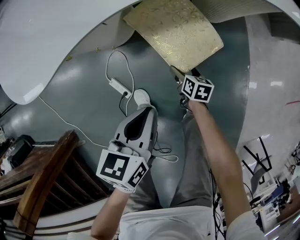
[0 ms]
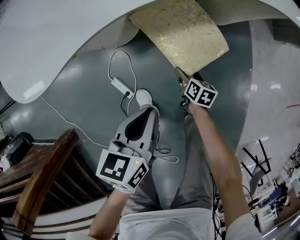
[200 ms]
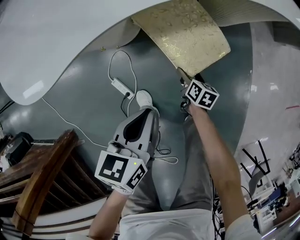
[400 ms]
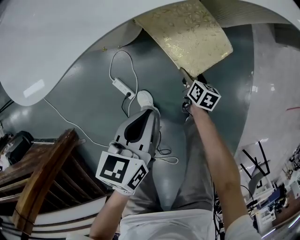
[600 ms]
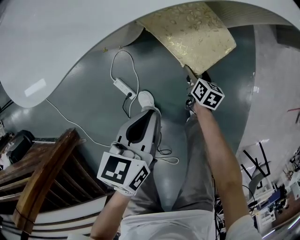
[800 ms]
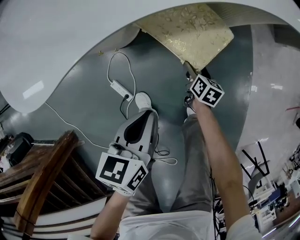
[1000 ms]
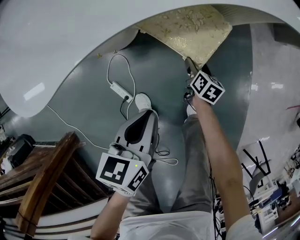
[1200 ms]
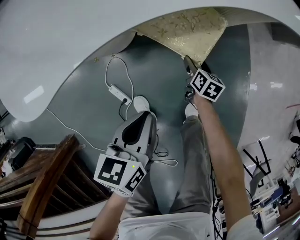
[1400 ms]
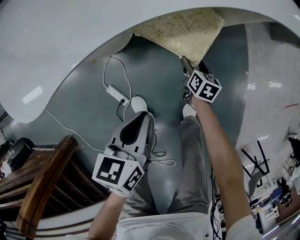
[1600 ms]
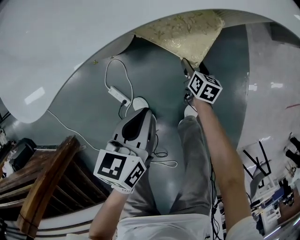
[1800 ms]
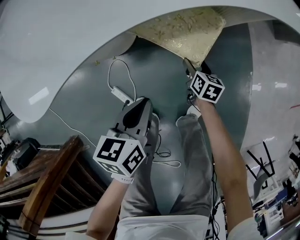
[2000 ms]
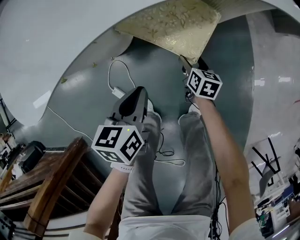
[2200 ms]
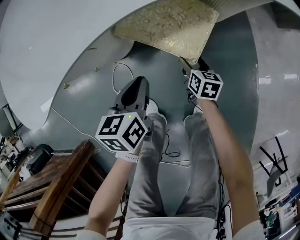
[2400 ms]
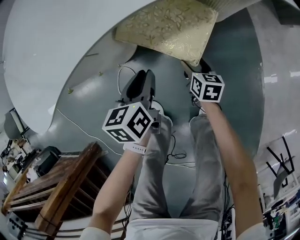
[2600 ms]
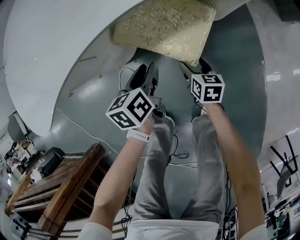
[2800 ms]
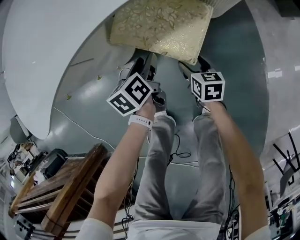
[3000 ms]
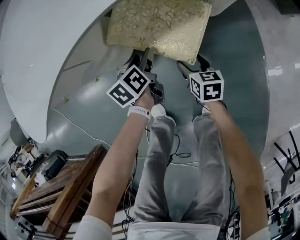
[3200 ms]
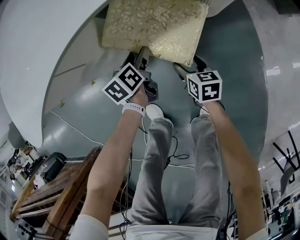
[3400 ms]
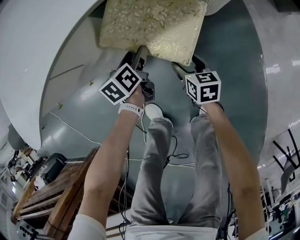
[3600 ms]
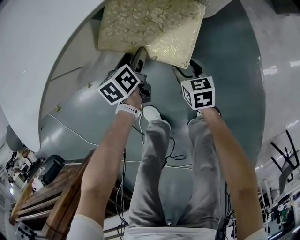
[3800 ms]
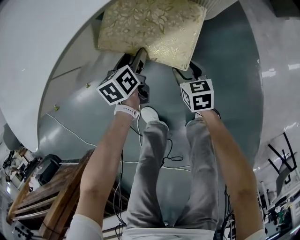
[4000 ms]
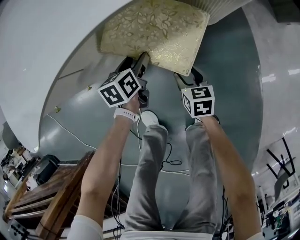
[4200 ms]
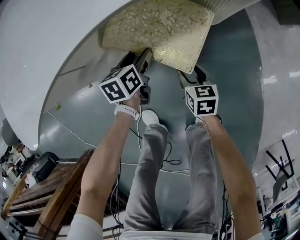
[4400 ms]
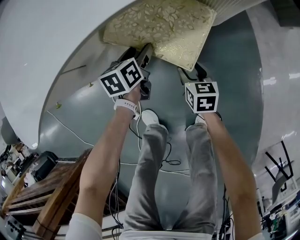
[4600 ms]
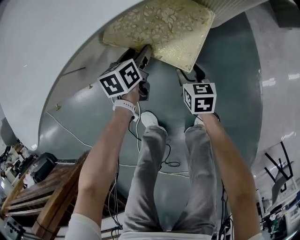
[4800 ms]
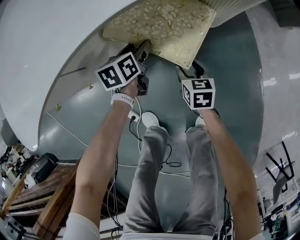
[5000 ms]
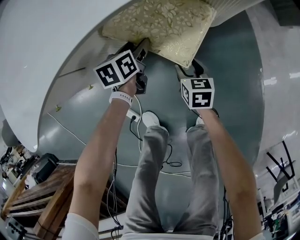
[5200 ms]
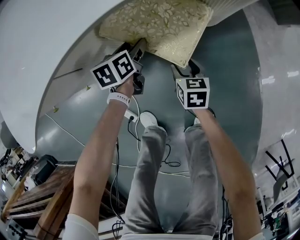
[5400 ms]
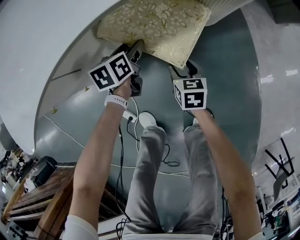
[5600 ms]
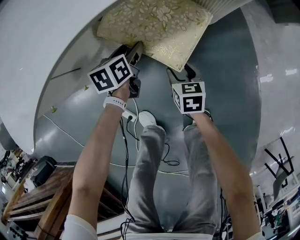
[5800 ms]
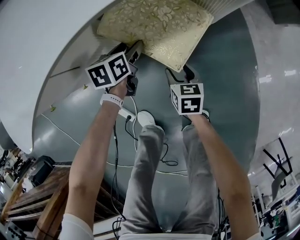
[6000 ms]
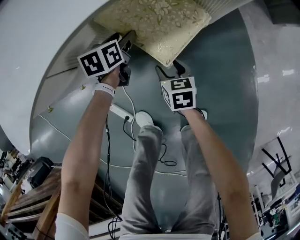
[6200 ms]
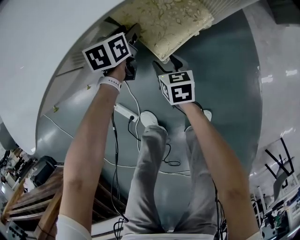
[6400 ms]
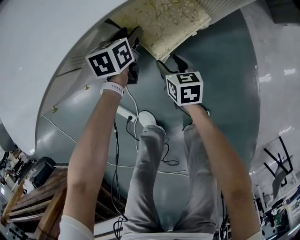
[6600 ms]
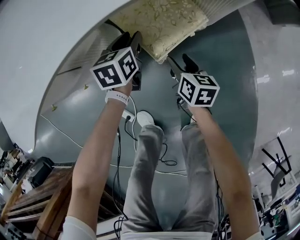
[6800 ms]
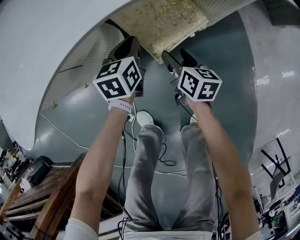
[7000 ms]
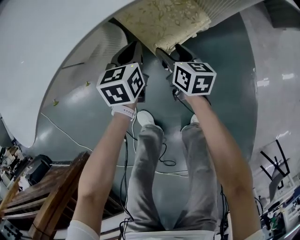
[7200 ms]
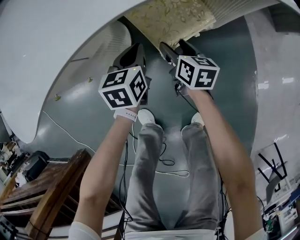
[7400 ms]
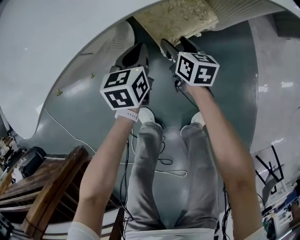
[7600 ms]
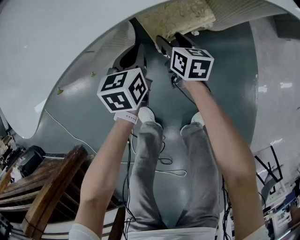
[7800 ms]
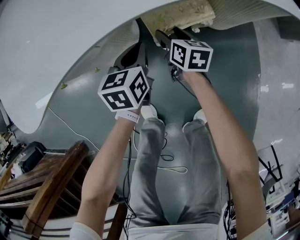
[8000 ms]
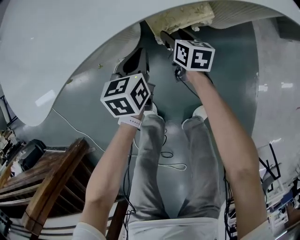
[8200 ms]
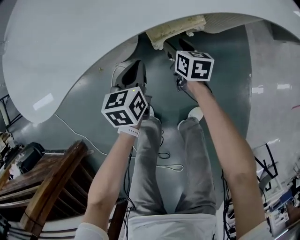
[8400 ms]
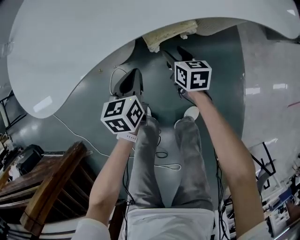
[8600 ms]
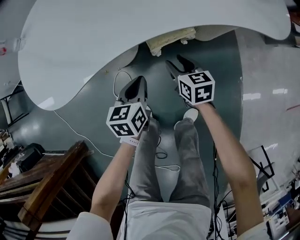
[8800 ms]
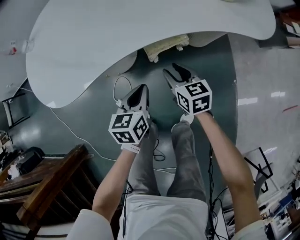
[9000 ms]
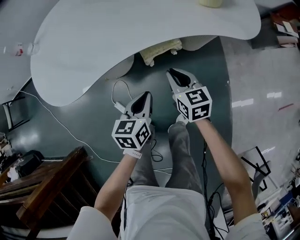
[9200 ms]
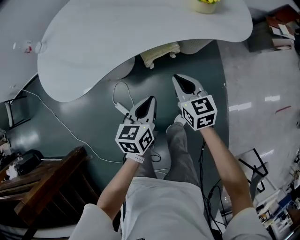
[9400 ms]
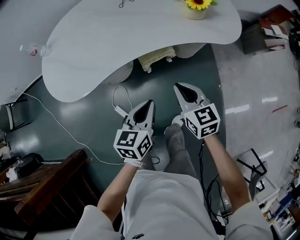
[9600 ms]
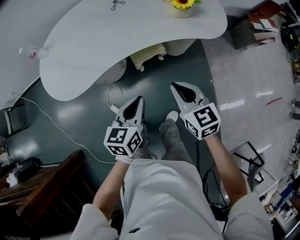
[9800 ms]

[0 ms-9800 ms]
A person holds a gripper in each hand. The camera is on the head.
0 ms to 1400 ms: The right gripper travels forward by about 10 cm.
1400 ms to 2800 ms: The left gripper goes about 20 cm forward and downward, and opens its fingers.
2800 ms to 4200 ms: The left gripper goes roughly 10 cm downward and forward, and opens its fingers.
4200 ms to 5600 ms: There are only small adjustments of the grippers.
5600 ms to 7000 ms: The two grippers go approximately 5 cm upward. The right gripper turns by about 30 degrees. The left gripper closes up.
7000 ms to 8400 ms: The right gripper heads to the left, covering approximately 5 cm; the left gripper goes some 15 cm backward, to the left and upward.
8400 ms to 9800 ms: The two grippers go approximately 40 cm upward and backward. The right gripper swivels approximately 30 degrees, and closes up.

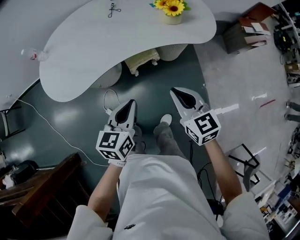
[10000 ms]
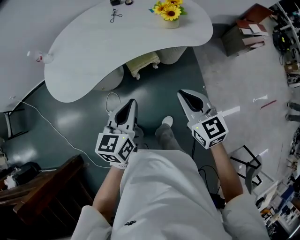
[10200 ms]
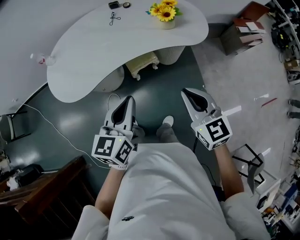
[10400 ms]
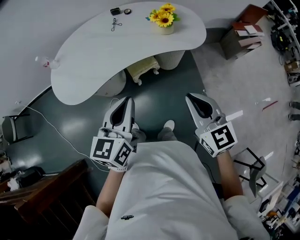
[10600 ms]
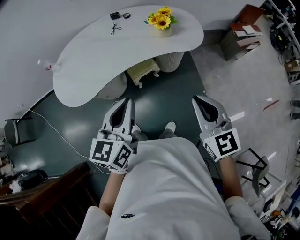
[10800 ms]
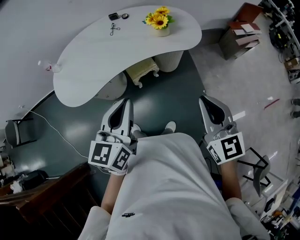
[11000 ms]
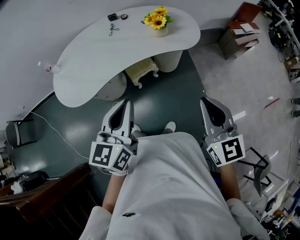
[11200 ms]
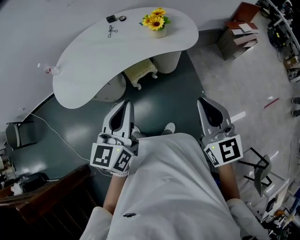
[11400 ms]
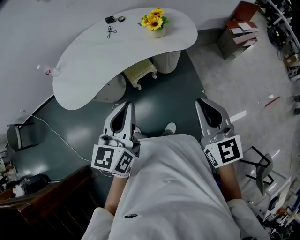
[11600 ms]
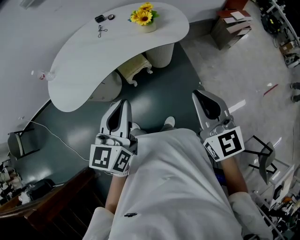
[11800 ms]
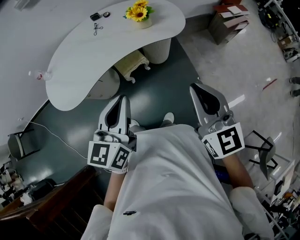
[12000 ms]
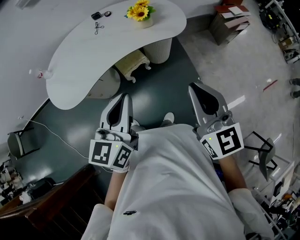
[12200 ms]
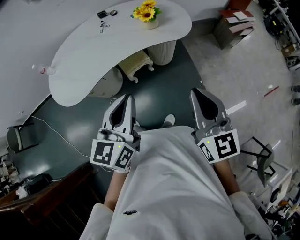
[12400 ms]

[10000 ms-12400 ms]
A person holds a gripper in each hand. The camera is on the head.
10000 ms to 11200 ms: The right gripper heads upward, to the right and backward, covering roughly 25 cm, and swivels some 20 degrees, while the left gripper goes some 20 cm upward.
11200 ms to 12400 ms: The grippers stay close to where they were, moving slightly.

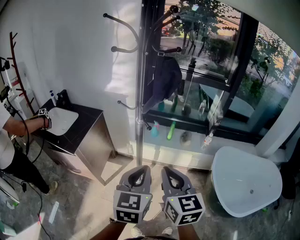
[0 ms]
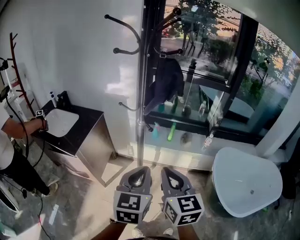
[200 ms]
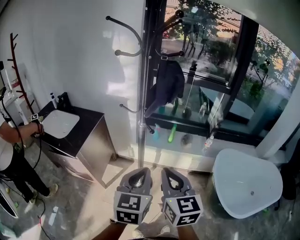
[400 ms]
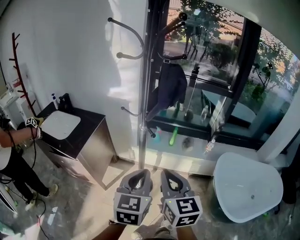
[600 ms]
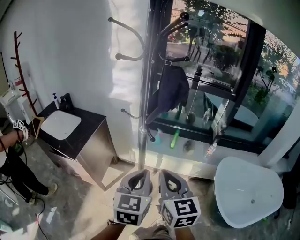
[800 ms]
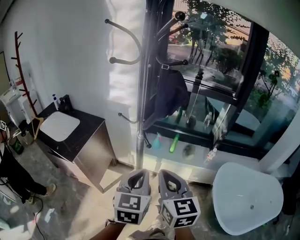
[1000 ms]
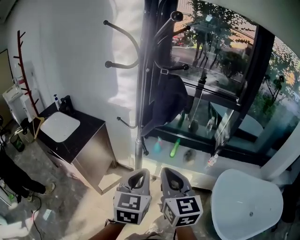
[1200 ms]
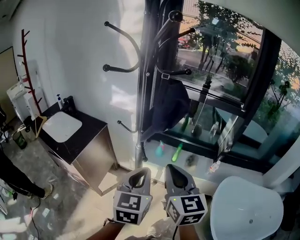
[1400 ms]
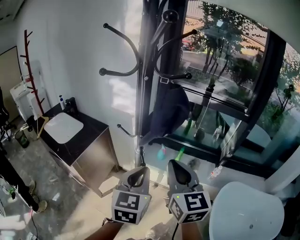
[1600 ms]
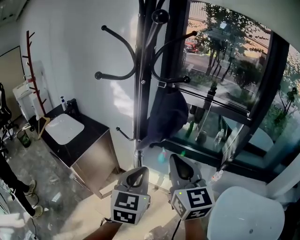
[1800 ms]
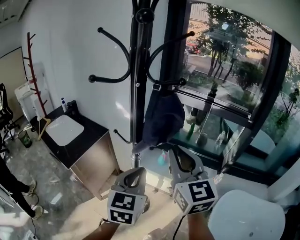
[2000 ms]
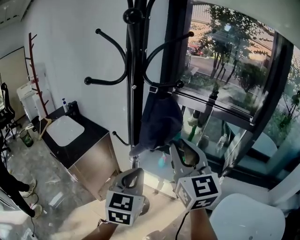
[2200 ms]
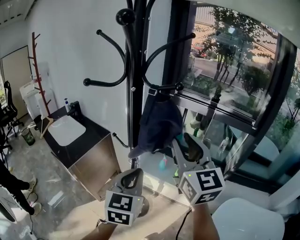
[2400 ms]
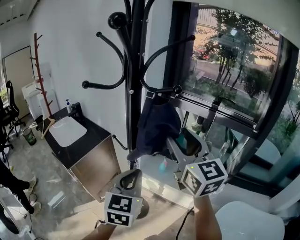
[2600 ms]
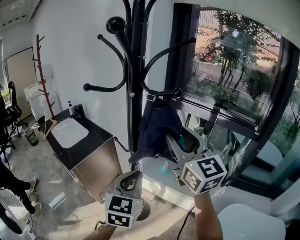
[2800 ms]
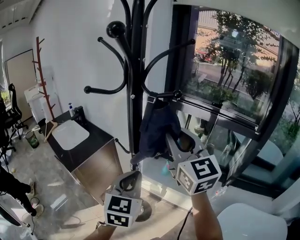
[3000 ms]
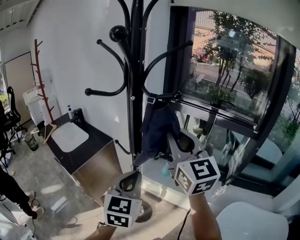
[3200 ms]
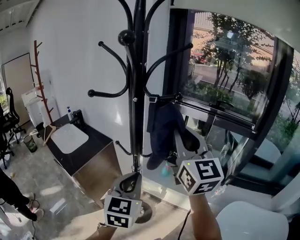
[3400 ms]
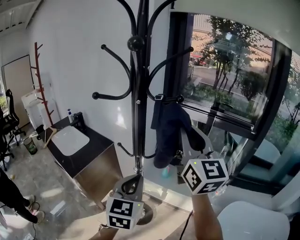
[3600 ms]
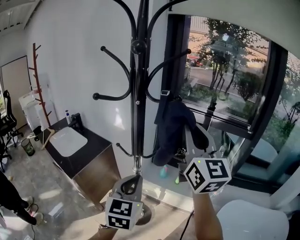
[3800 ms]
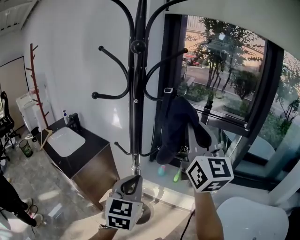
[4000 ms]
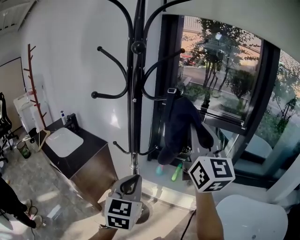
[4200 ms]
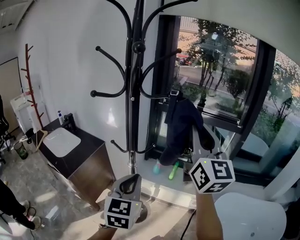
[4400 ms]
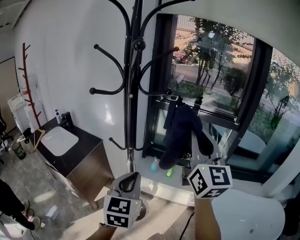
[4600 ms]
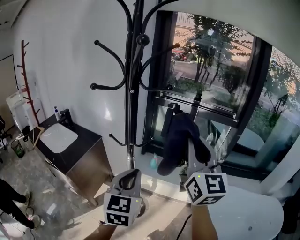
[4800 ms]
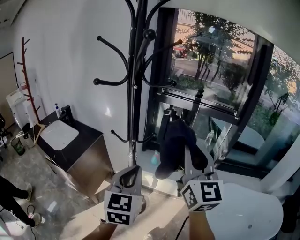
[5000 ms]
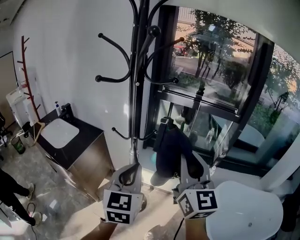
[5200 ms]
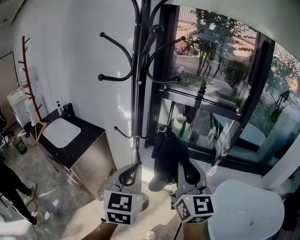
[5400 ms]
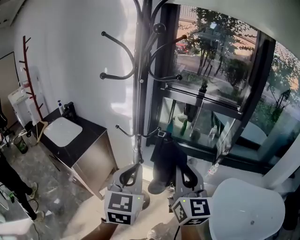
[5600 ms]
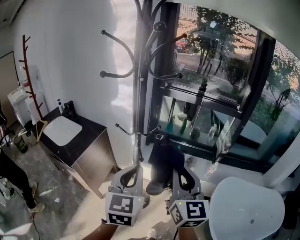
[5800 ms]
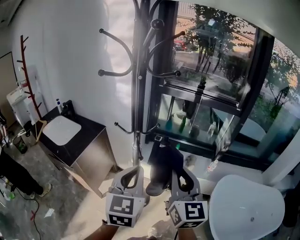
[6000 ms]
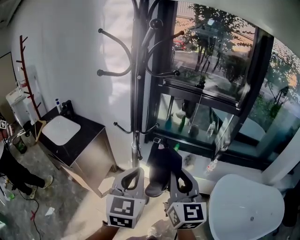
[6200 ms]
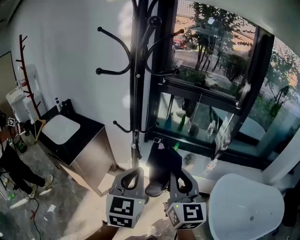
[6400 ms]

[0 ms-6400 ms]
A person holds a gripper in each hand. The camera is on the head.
0 ms to 1600 ms: Both grippers move forward, approximately 15 cm.
1600 ms to 3200 ms: The left gripper heads forward, covering about 5 cm. Meanwhile the right gripper shifts about 15 cm forward and upward, swivels some 20 degrees, and opens, then closes once more.
3200 ms to 4800 ms: The right gripper goes about 15 cm backward and to the right, and changes its angle by about 20 degrees, while the left gripper is displaced backward by some 5 cm.
4800 ms to 6400 ms: The right gripper is displaced downward and backward by about 15 cm.

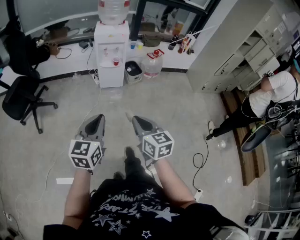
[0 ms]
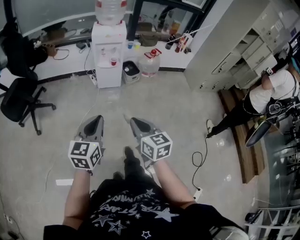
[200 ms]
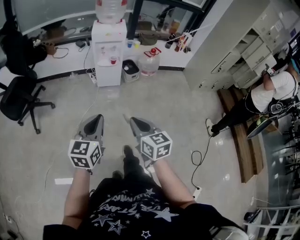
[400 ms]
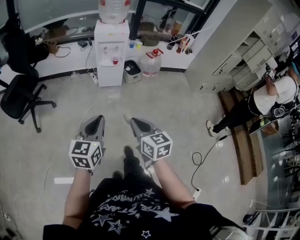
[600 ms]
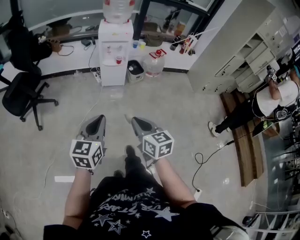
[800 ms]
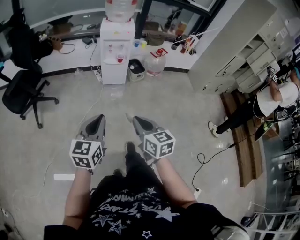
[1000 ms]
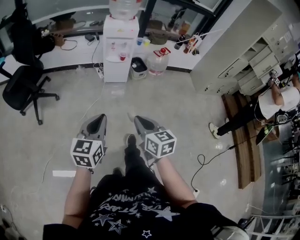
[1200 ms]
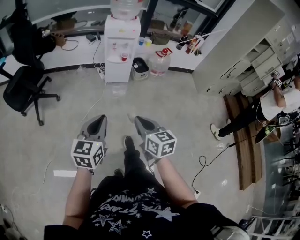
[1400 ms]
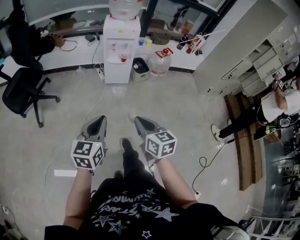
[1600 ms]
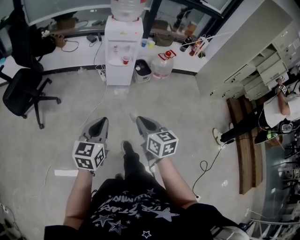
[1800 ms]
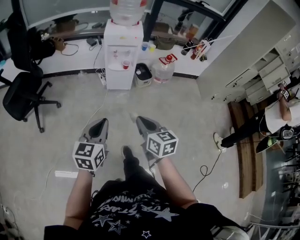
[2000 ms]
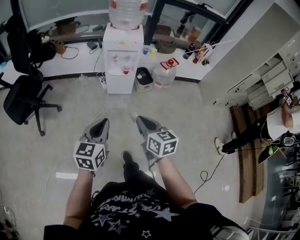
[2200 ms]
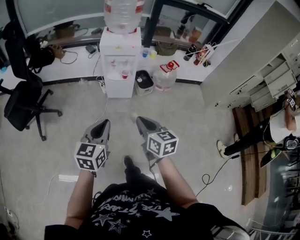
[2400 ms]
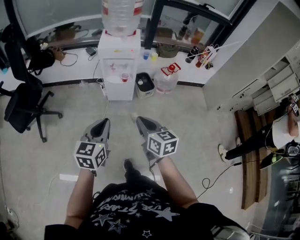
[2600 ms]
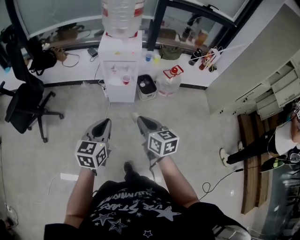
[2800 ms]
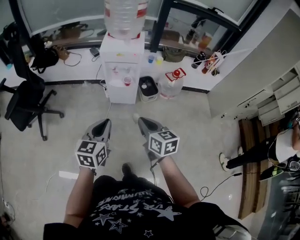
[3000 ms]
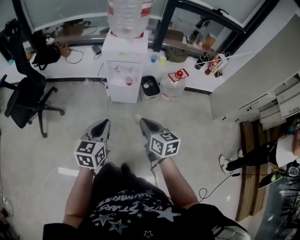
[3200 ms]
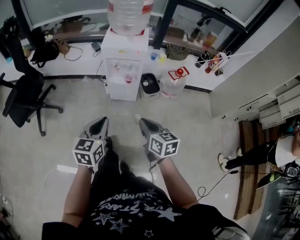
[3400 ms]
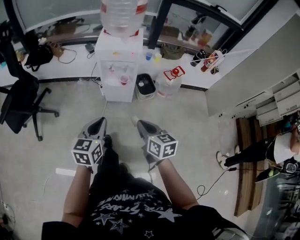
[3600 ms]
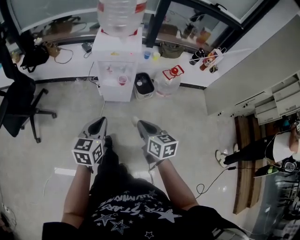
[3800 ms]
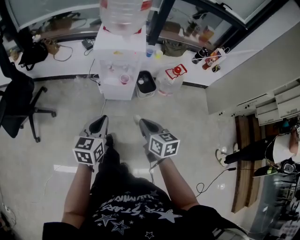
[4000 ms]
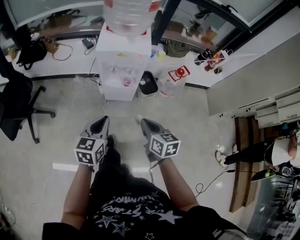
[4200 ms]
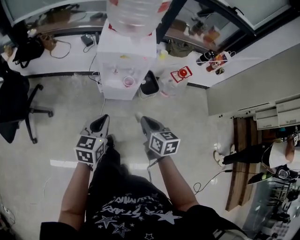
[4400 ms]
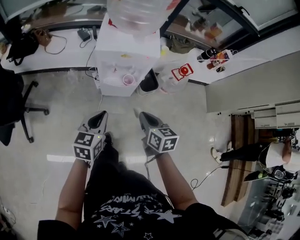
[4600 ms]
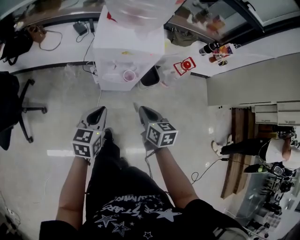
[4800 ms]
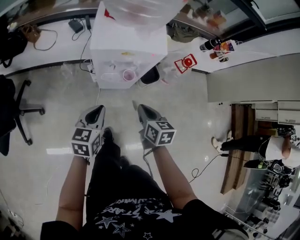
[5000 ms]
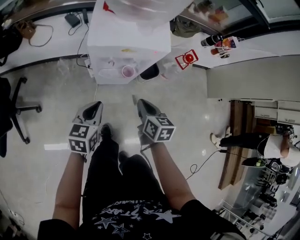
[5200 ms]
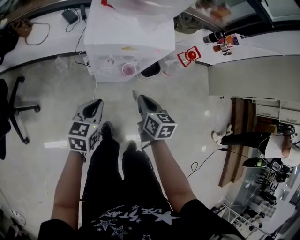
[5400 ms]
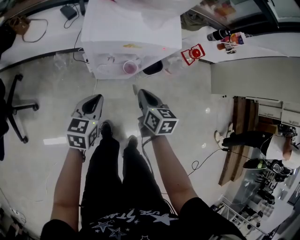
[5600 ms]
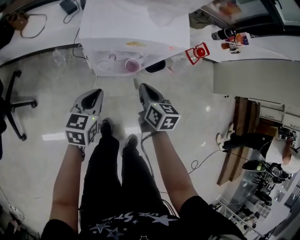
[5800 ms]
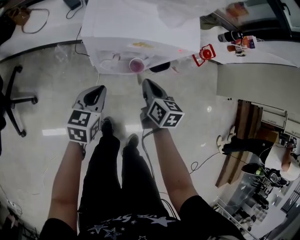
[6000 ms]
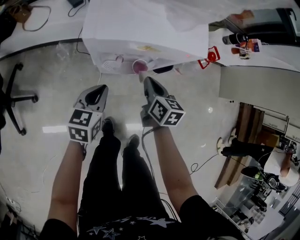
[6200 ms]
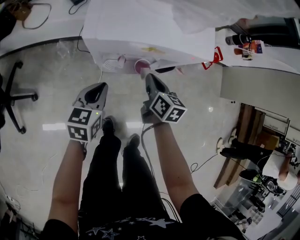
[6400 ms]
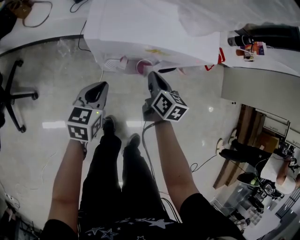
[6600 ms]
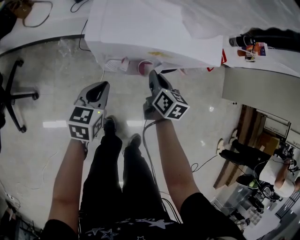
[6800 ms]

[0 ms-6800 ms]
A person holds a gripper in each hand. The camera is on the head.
0 ms to 1400 ms: There are only small adjustments of the grippers.
1400 ms to 2800 ms: The two grippers go some 25 cm forward.
2800 ms to 4000 ms: The grippers both shift forward and downward by roughly 10 cm.
4000 ms to 5400 ms: Both grippers travel together forward and downward, approximately 25 cm.
5400 ms to 6800 ms: The left gripper travels downward and forward by some 10 cm. The right gripper goes roughly 15 cm forward and downward.
